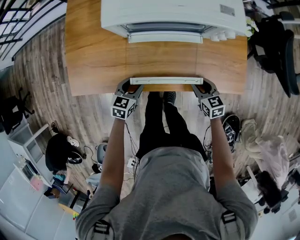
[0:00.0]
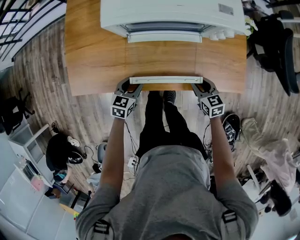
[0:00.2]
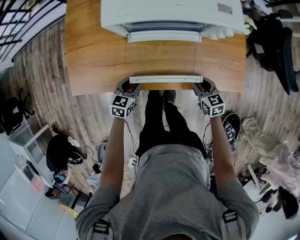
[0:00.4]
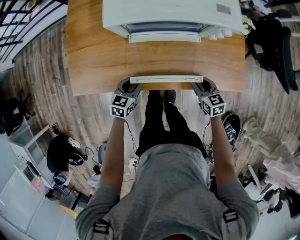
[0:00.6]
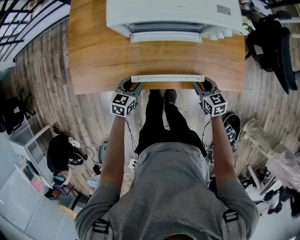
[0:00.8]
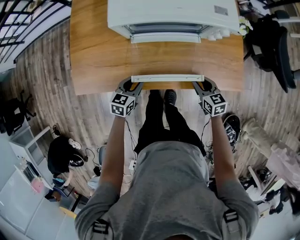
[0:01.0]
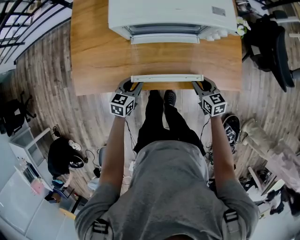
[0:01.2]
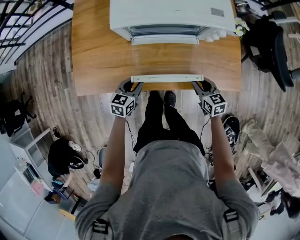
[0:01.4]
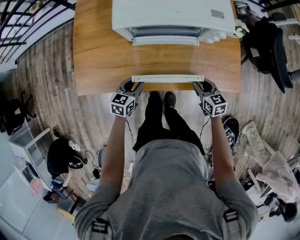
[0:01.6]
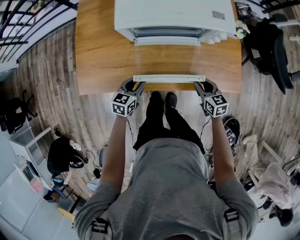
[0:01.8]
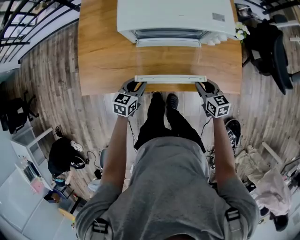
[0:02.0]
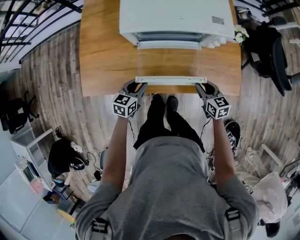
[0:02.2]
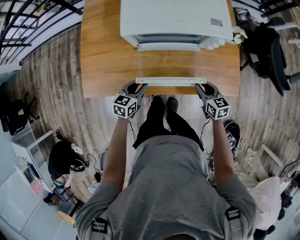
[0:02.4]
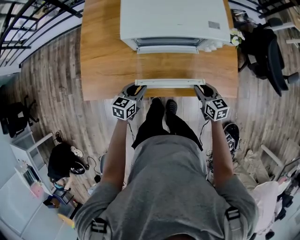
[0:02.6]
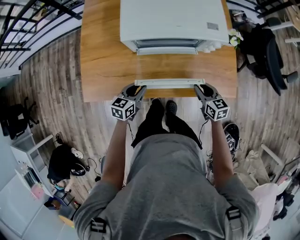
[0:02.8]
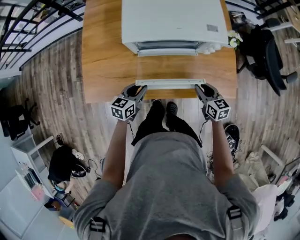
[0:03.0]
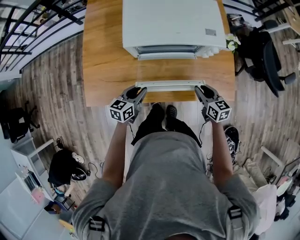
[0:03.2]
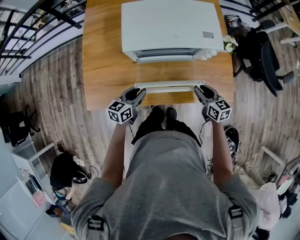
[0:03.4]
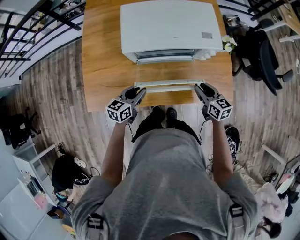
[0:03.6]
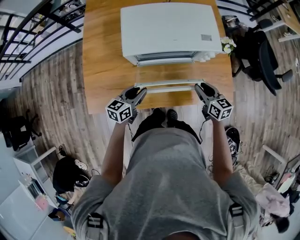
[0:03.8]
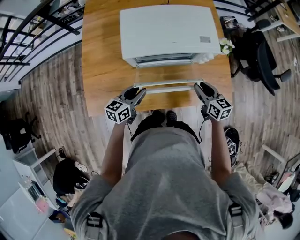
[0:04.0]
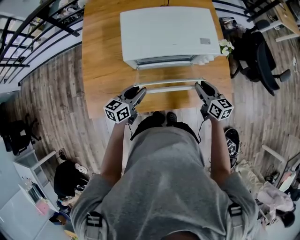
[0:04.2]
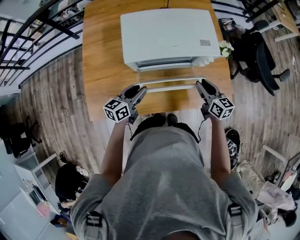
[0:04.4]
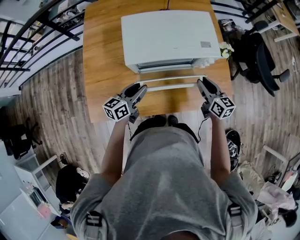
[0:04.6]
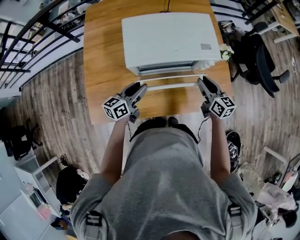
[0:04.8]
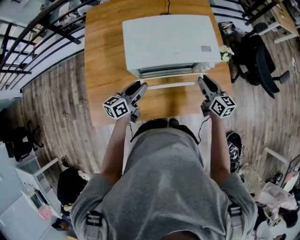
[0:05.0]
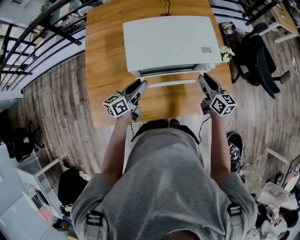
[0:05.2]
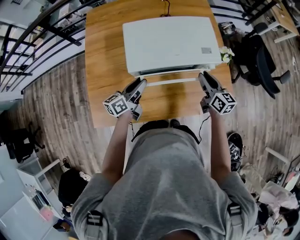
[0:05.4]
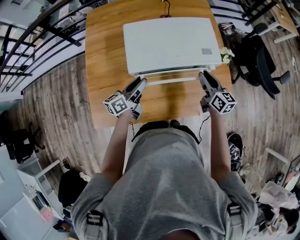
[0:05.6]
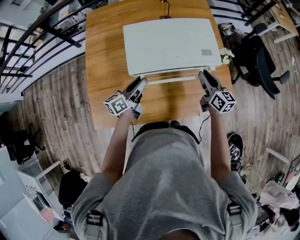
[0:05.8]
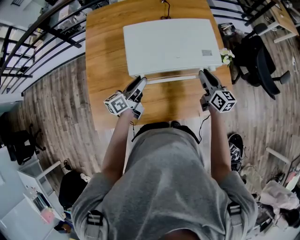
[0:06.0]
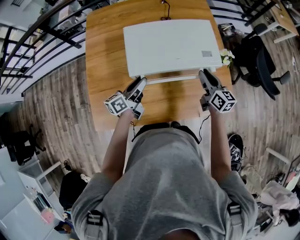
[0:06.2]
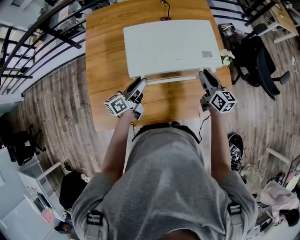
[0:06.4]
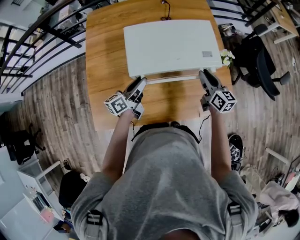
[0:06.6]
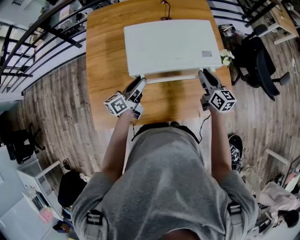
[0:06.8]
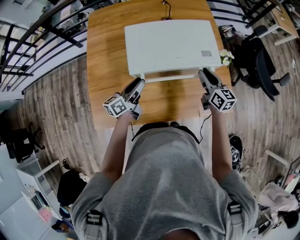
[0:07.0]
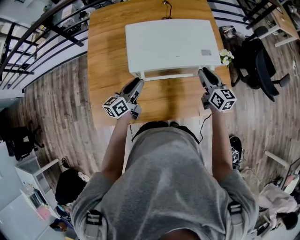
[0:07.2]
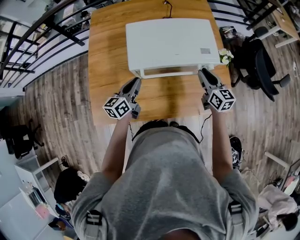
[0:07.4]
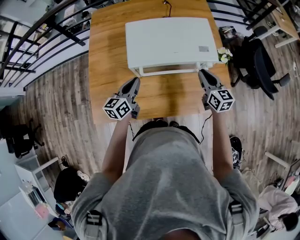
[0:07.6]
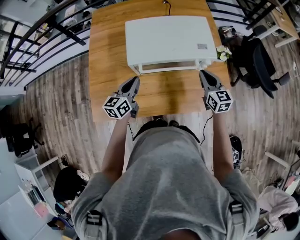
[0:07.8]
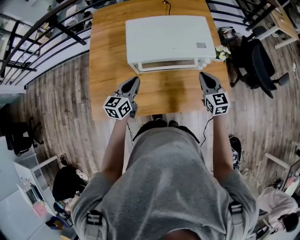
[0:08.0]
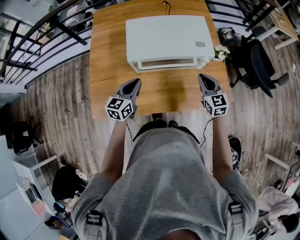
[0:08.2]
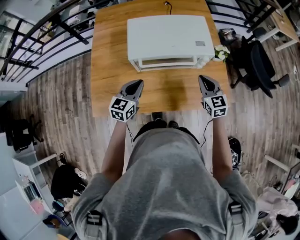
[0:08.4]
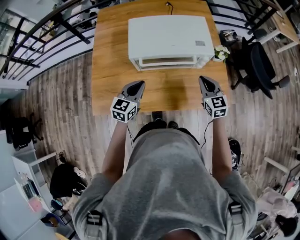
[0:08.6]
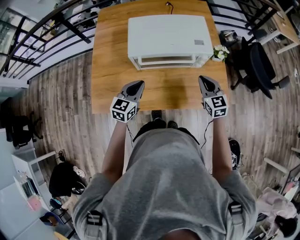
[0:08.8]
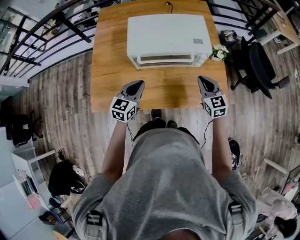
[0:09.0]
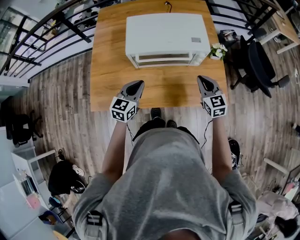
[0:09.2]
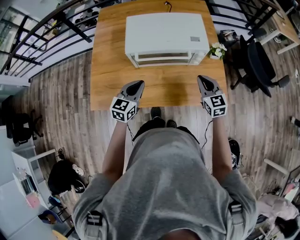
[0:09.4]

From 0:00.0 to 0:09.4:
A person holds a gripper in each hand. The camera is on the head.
From 0:00.0 to 0:01.6: The two grippers go roughly 5 cm upward.
From 0:01.6 to 0:03.2: The grippers both shift upward by some 10 cm.
From 0:03.2 to 0:04.8: Both grippers travel together forward and upward, approximately 10 cm.
From 0:04.8 to 0:06.2: Both grippers travel together forward, roughly 5 cm.
From 0:06.2 to 0:07.8: The right gripper rotates some 20 degrees. Meanwhile the left gripper travels backward by roughly 5 cm, swivels roughly 30 degrees, and closes up.
From 0:07.8 to 0:09.4: The right gripper travels backward by about 10 cm. Meanwhile the left gripper moves backward and to the right, some 10 cm, and turns by roughly 20 degrees.

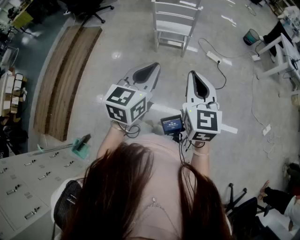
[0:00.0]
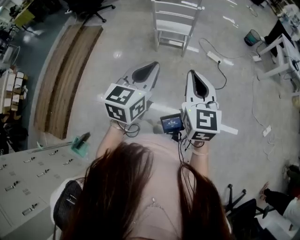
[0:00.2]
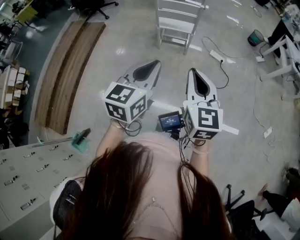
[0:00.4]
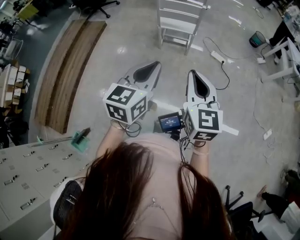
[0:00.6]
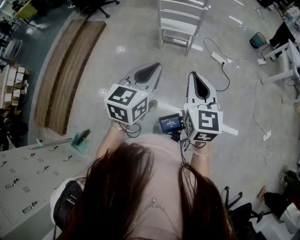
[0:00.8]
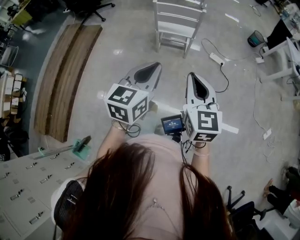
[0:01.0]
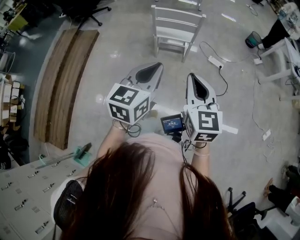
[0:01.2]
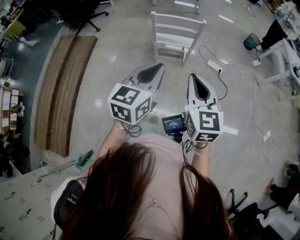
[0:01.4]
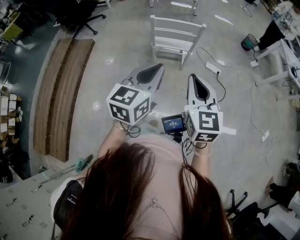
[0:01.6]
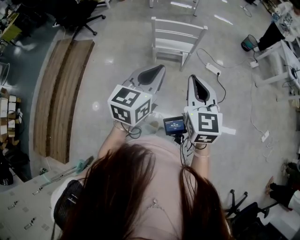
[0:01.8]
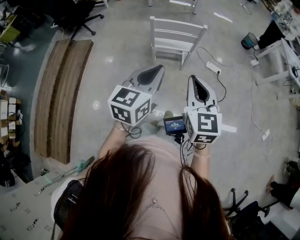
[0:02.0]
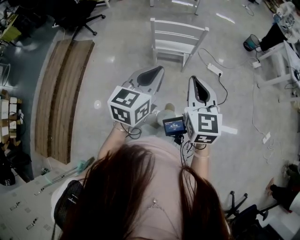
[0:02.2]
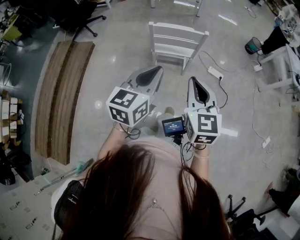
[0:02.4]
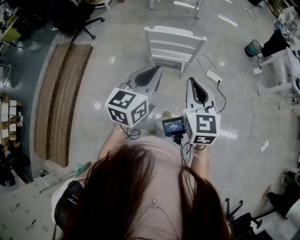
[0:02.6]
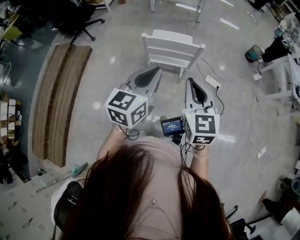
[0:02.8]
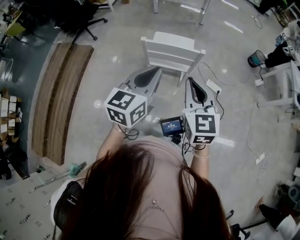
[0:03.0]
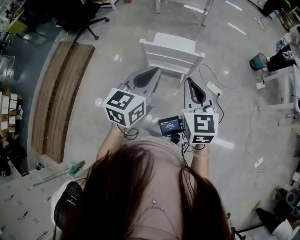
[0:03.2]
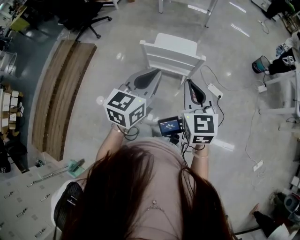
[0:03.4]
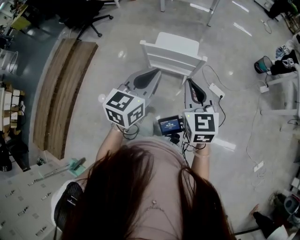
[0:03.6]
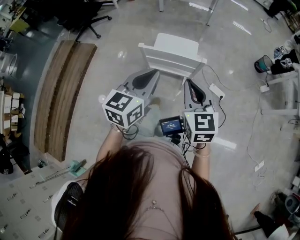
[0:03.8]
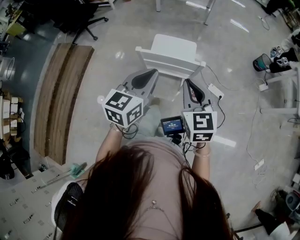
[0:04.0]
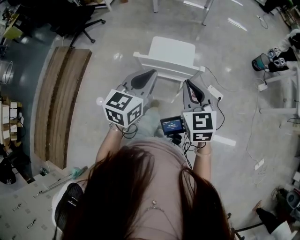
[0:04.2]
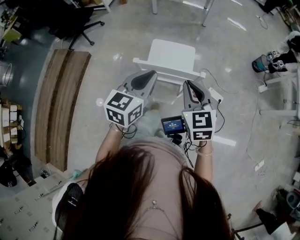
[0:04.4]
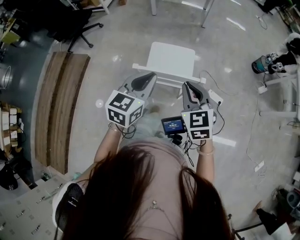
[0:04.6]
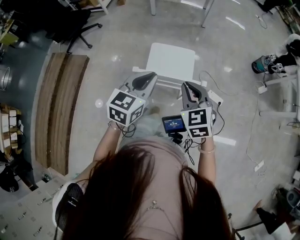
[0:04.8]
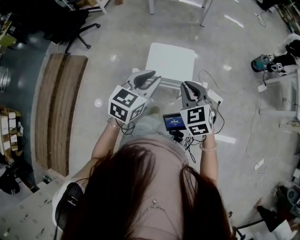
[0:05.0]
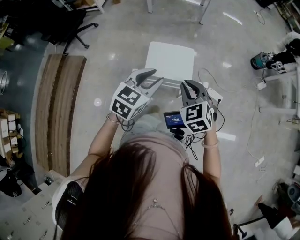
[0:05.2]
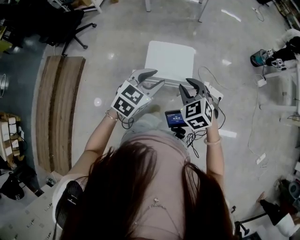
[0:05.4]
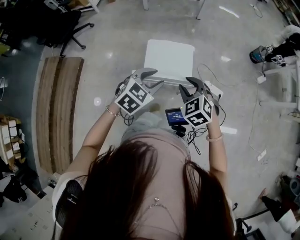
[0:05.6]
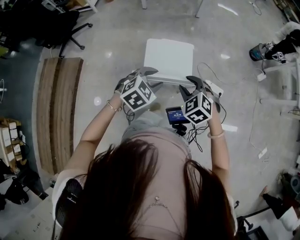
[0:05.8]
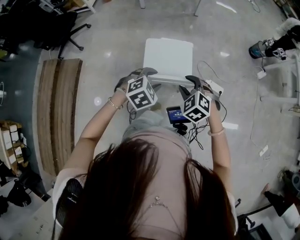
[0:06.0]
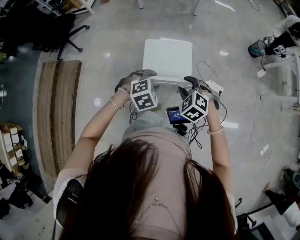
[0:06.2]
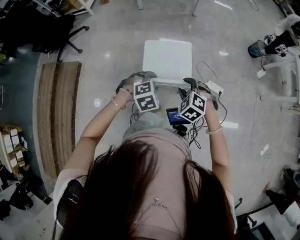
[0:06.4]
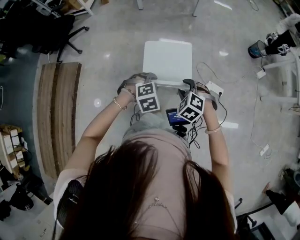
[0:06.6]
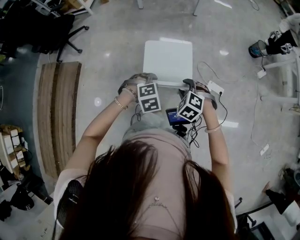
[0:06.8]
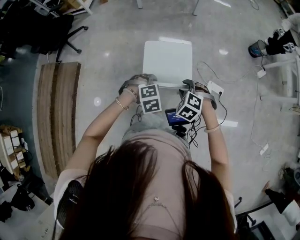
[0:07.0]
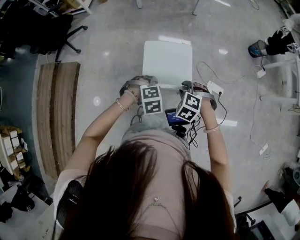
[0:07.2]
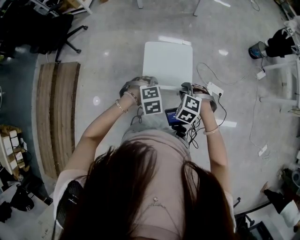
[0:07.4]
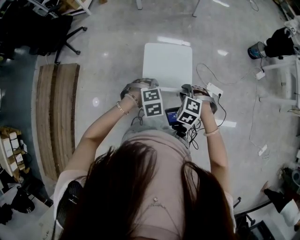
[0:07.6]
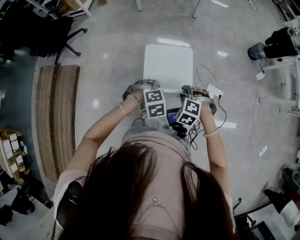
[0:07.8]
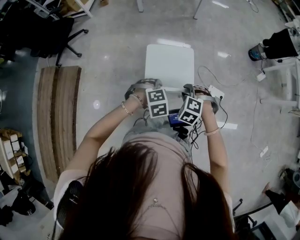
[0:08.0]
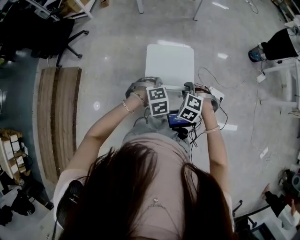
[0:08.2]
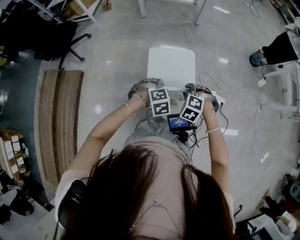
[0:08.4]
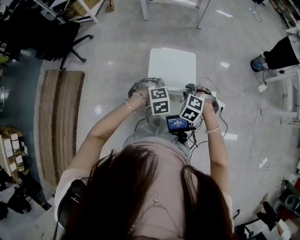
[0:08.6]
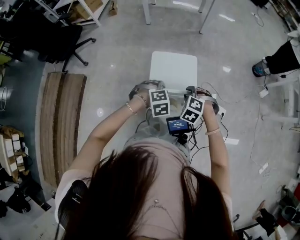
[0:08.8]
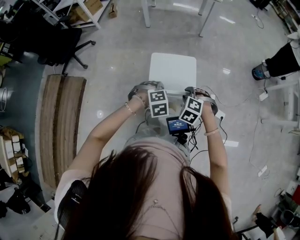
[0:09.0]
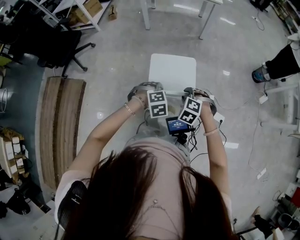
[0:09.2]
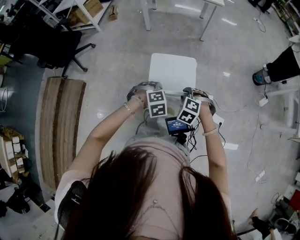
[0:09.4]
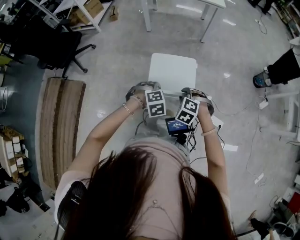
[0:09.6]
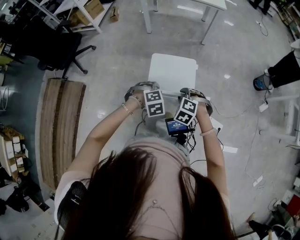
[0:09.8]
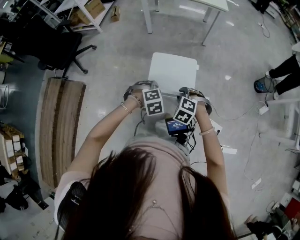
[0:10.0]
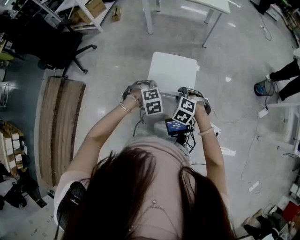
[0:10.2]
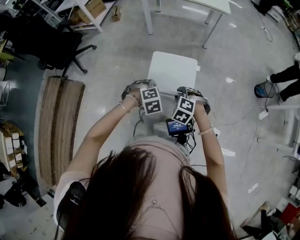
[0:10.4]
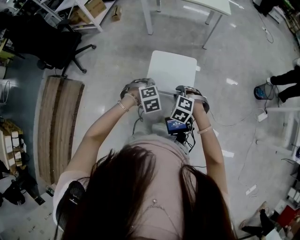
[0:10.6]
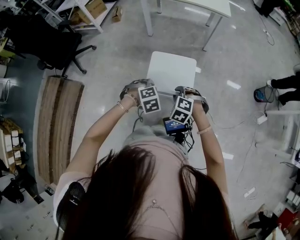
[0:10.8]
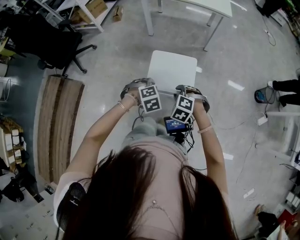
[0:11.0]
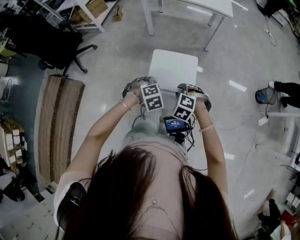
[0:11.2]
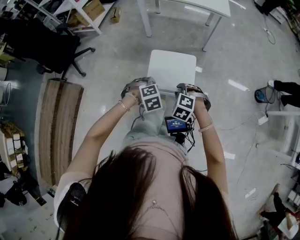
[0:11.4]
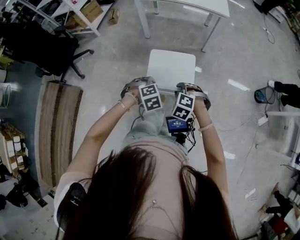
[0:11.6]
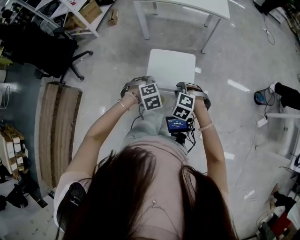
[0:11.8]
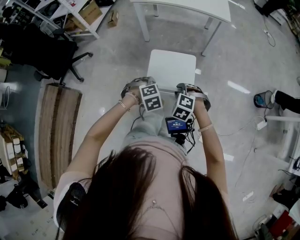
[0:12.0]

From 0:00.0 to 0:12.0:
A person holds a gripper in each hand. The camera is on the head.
From 0:00.0 to 0:01.6: The right gripper travels forward and to the left by approximately 20 cm; the left gripper goes approximately 20 cm forward.
From 0:01.6 to 0:03.0: Both grippers move forward, approximately 25 cm.
From 0:03.0 to 0:04.4: Both grippers move forward, approximately 15 cm.
From 0:04.4 to 0:06.0: Both grippers move downward and forward, roughly 20 cm. The left gripper points its fingers roughly 40 degrees further downward, and opens its fingers, while the right gripper turns by approximately 40 degrees, and opens.
From 0:06.0 to 0:07.6: Both grippers travel together downward, about 5 cm. The left gripper changes its angle by roughly 20 degrees, and closes; the right gripper changes its angle by some 20 degrees.
From 0:07.6 to 0:09.0: Both grippers travel together forward, about 15 cm.
From 0:09.0 to 0:10.4: Both grippers travel together forward, about 15 cm.
From 0:10.4 to 0:12.0: The two grippers go approximately 15 cm forward.

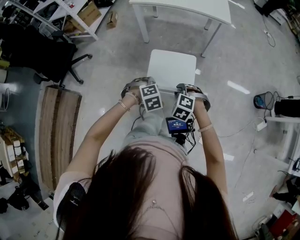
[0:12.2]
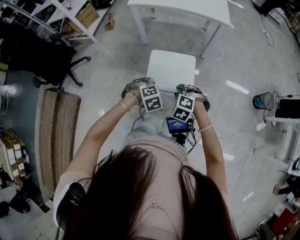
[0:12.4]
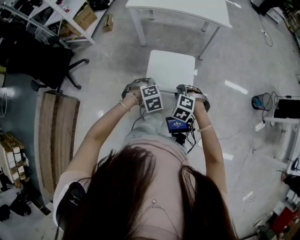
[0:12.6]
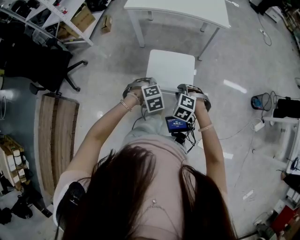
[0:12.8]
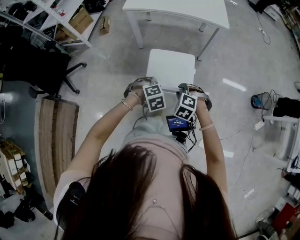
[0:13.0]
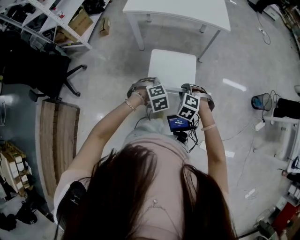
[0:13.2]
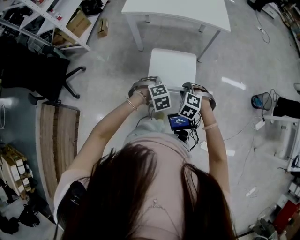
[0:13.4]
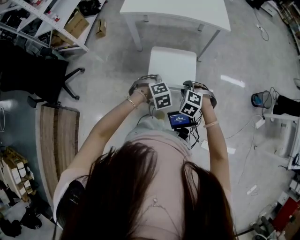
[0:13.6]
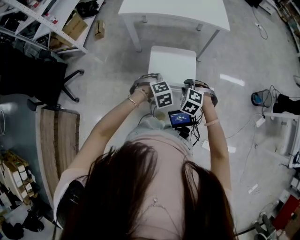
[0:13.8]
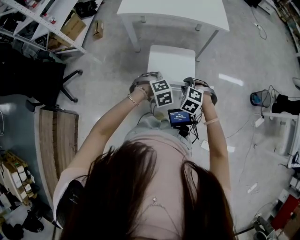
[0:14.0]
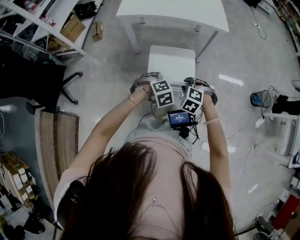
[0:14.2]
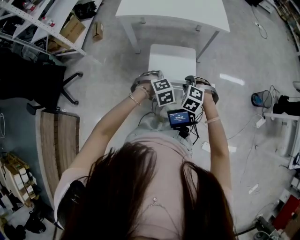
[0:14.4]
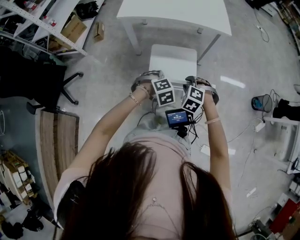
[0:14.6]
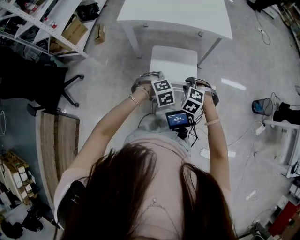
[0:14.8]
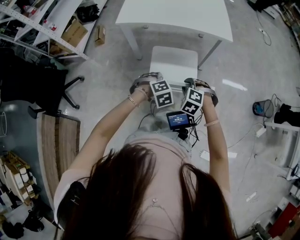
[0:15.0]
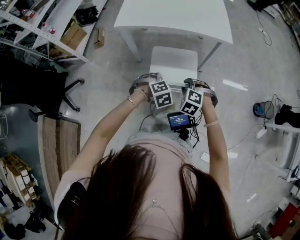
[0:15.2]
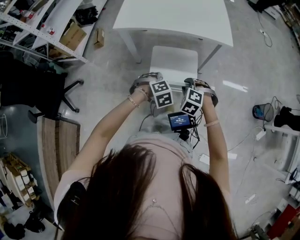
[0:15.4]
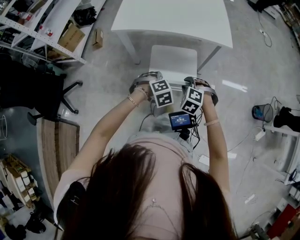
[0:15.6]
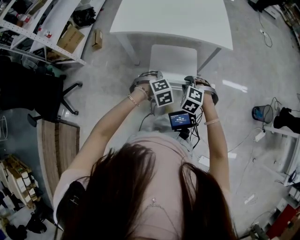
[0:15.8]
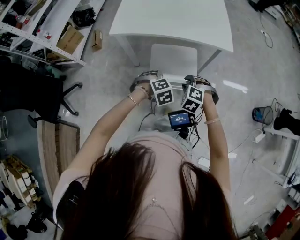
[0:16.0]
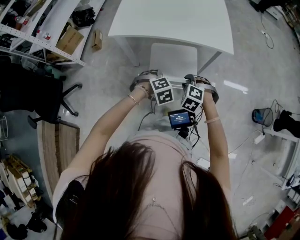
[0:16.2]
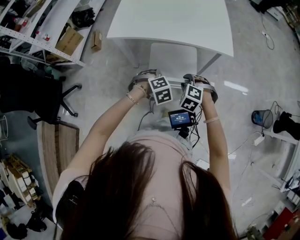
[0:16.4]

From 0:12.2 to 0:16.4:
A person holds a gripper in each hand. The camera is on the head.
From 0:12.2 to 0:13.6: The grippers both shift forward by some 15 cm.
From 0:13.6 to 0:15.0: The two grippers go roughly 15 cm forward.
From 0:15.0 to 0:16.4: The grippers both shift forward by roughly 15 cm.
